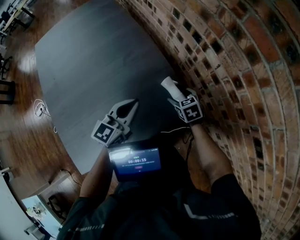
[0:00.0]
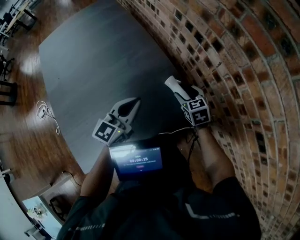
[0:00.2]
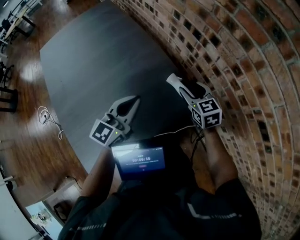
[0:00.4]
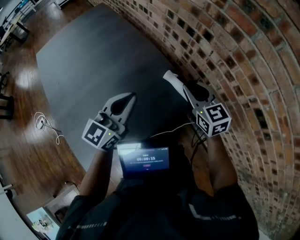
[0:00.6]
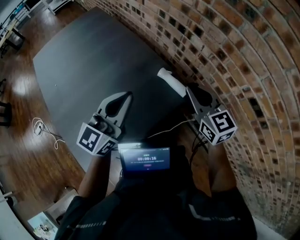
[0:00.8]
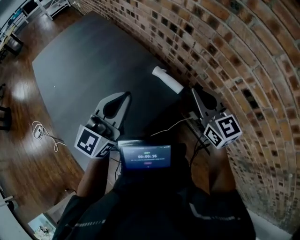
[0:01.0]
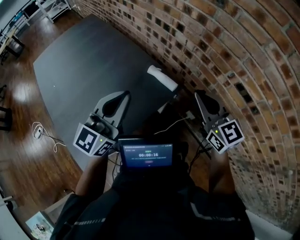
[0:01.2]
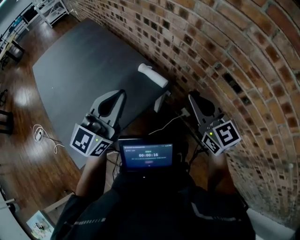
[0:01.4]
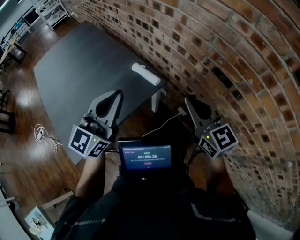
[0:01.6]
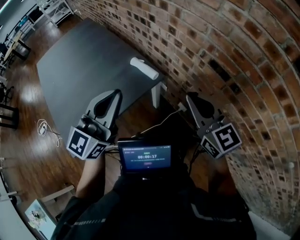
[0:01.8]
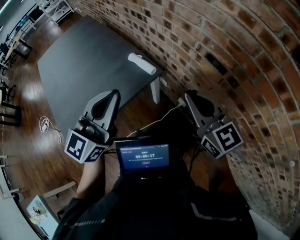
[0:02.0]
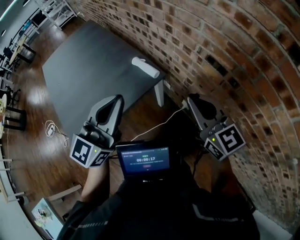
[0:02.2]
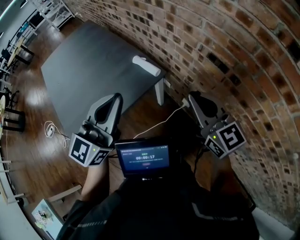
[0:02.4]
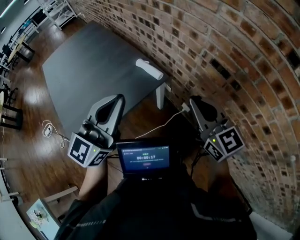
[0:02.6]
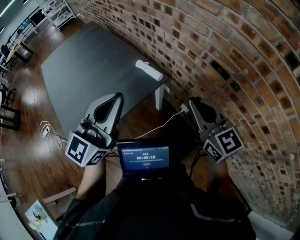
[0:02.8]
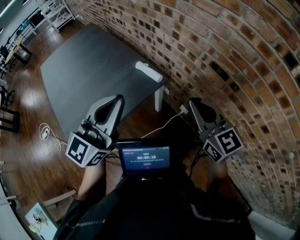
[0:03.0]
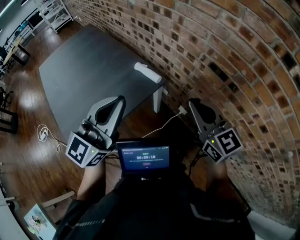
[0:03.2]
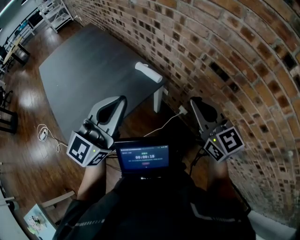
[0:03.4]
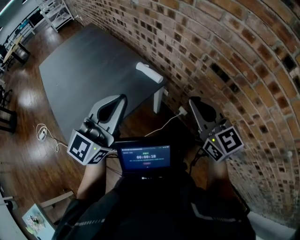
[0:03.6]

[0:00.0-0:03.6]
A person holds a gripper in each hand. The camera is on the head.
0:00.0 to 0:01.8: The left gripper goes about 35 cm backward, upward and to the right, and rotates about 20 degrees. The right gripper goes about 50 cm upward, backward and to the right, tips its fingers upward by roughly 50 degrees, and closes up.
0:01.8 to 0:03.6: The right gripper shifts by roughly 5 cm, while the left gripper is displaced backward by about 5 cm.

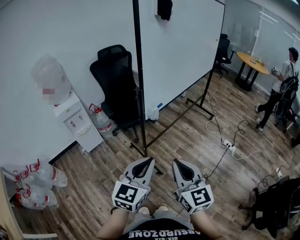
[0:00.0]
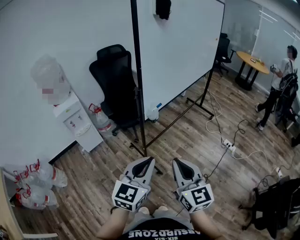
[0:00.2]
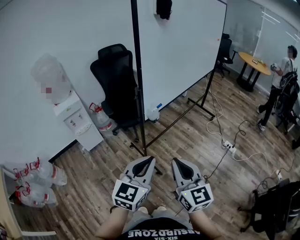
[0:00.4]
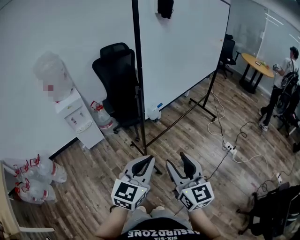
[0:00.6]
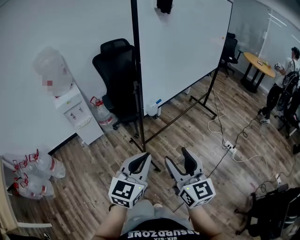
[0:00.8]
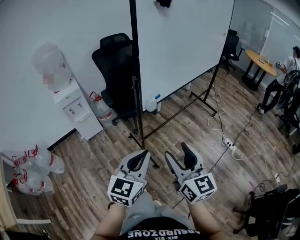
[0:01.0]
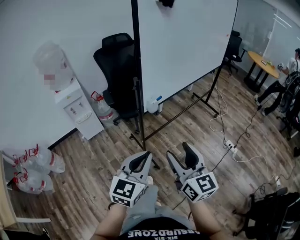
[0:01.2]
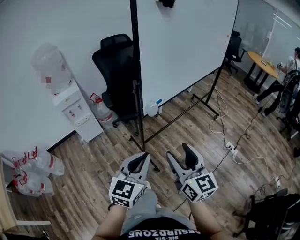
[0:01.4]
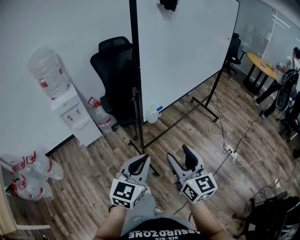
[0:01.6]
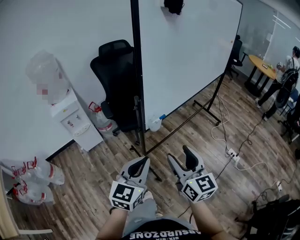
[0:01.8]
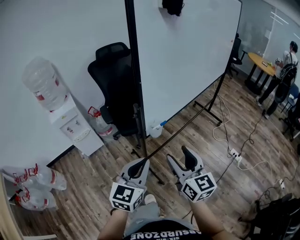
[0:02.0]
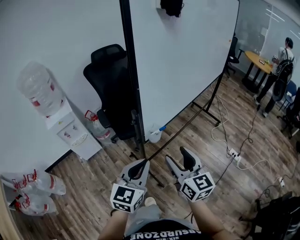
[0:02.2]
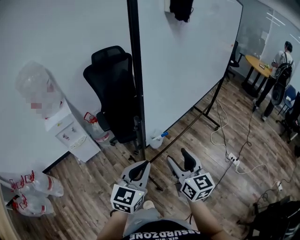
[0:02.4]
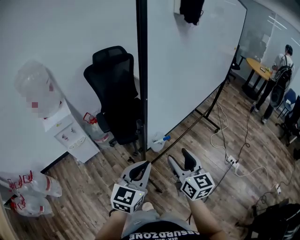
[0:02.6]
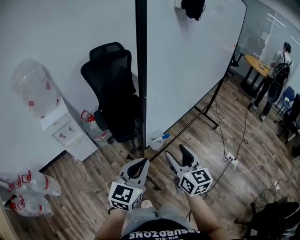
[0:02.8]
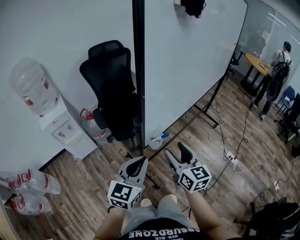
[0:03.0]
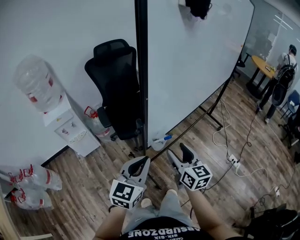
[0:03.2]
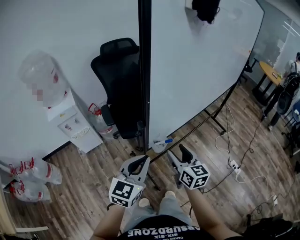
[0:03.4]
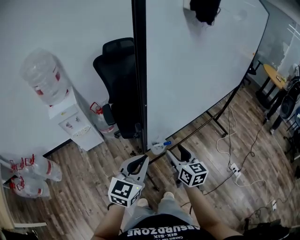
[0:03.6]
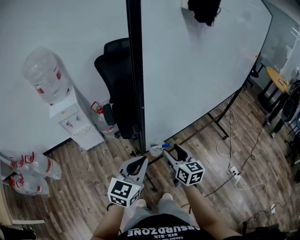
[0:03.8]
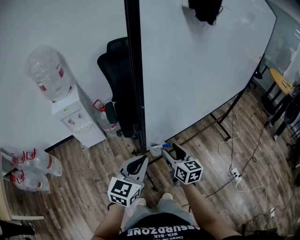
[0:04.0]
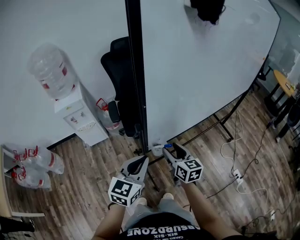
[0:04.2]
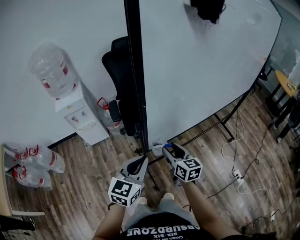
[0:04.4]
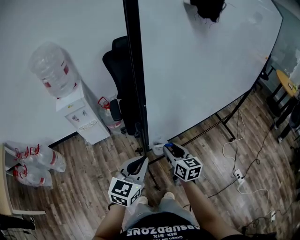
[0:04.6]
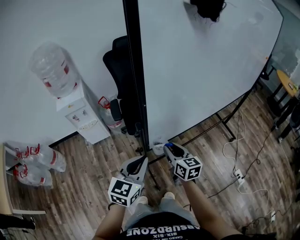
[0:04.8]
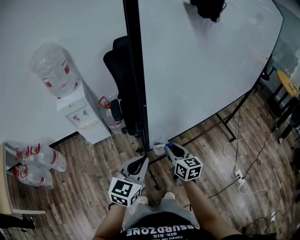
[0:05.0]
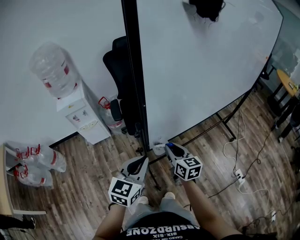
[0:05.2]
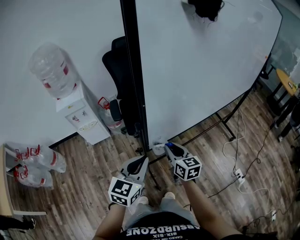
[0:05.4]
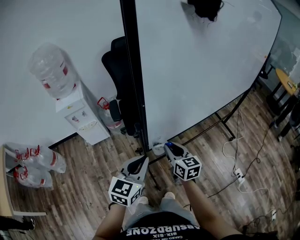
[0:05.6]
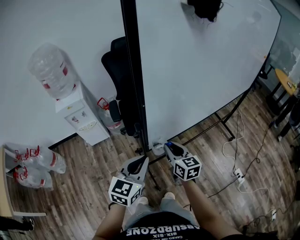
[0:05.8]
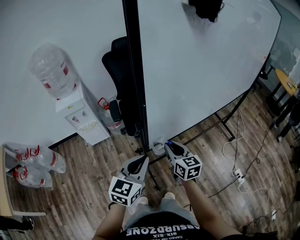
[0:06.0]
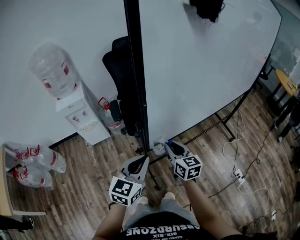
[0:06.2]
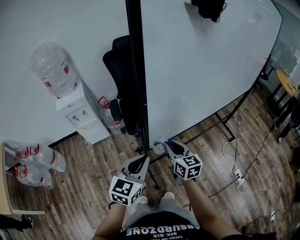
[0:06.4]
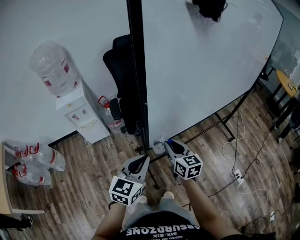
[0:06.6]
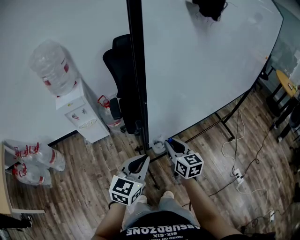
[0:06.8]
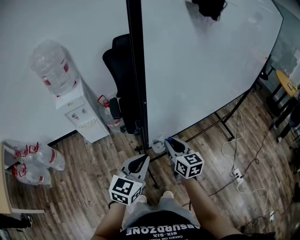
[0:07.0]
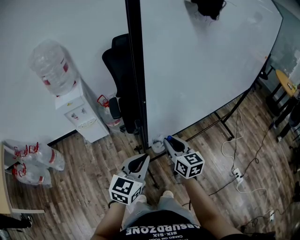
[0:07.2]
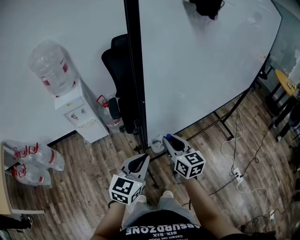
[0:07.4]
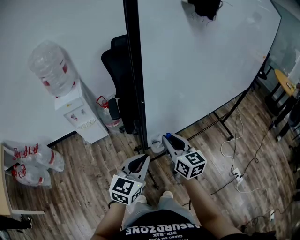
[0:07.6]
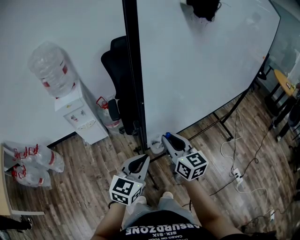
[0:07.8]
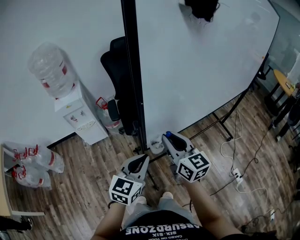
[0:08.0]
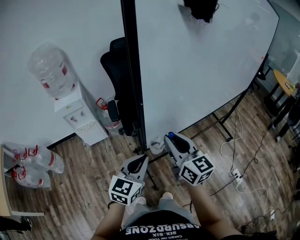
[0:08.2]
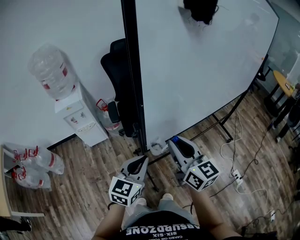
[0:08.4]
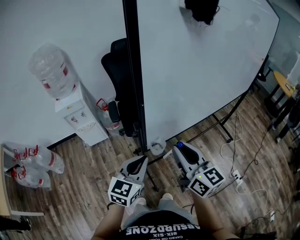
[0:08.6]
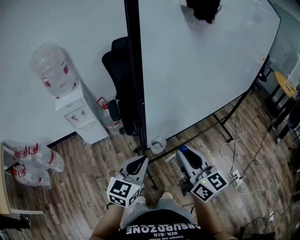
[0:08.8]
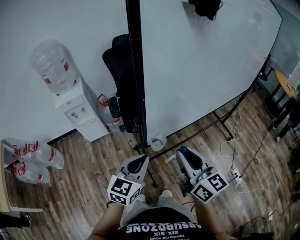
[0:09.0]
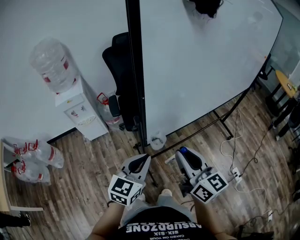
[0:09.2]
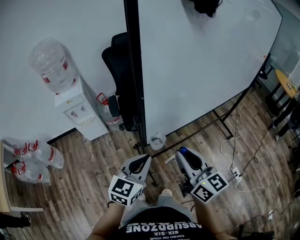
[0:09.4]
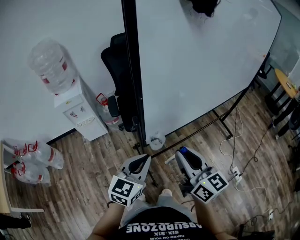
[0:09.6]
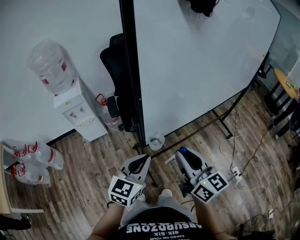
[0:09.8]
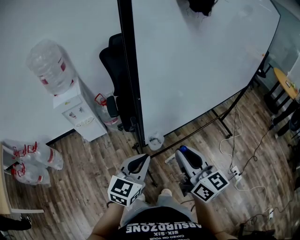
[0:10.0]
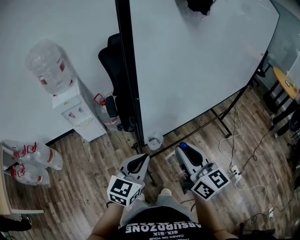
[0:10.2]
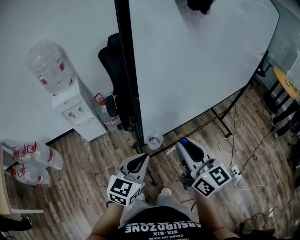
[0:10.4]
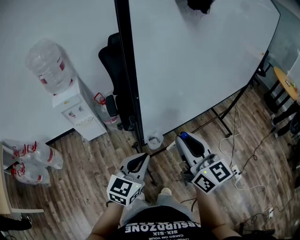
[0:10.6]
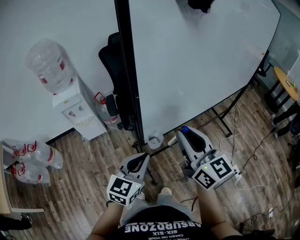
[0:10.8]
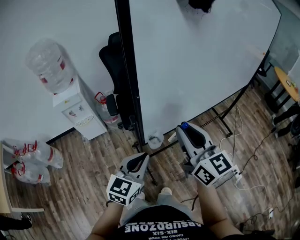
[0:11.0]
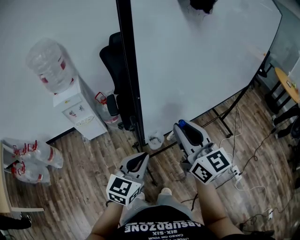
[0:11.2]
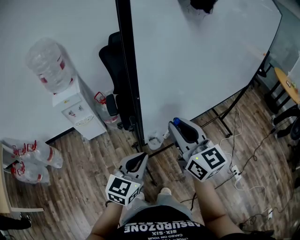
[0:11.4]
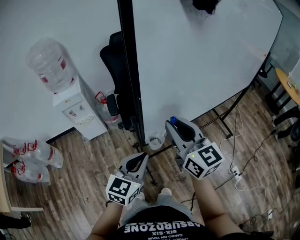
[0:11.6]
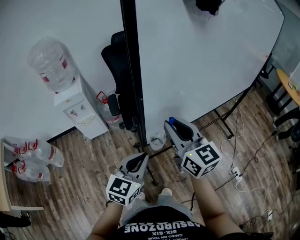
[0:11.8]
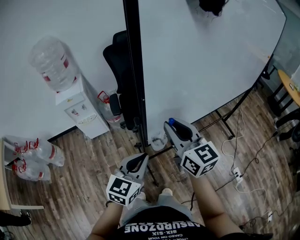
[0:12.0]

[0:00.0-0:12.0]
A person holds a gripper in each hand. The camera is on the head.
0:00.0 to 0:01.6: Both grippers travel together forward, some 10 cm. The right gripper opens up.
0:01.6 to 0:03.0: Both grippers travel together forward, roughly 20 cm.
0:03.0 to 0:04.4: The right gripper goes roughly 10 cm forward and downward, and rotates roughly 20 degrees.
0:04.4 to 0:06.0: The right gripper closes its fingers.
0:06.0 to 0:07.6: The right gripper heads upward, covering some 5 cm.
0:07.6 to 0:09.0: The right gripper shifts about 10 cm backward and upward.
0:09.0 to 0:10.4: The grippers move only a little.
0:10.4 to 0:12.0: The right gripper moves forward and to the left, some 10 cm.

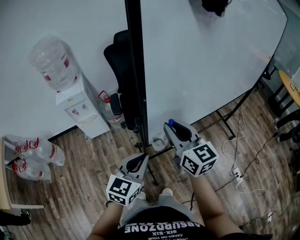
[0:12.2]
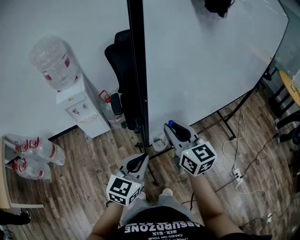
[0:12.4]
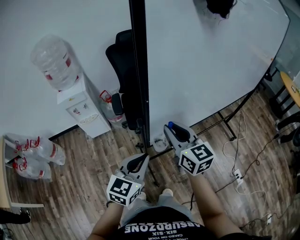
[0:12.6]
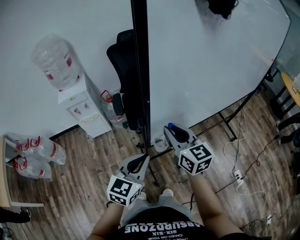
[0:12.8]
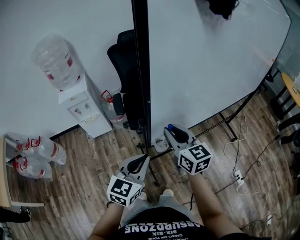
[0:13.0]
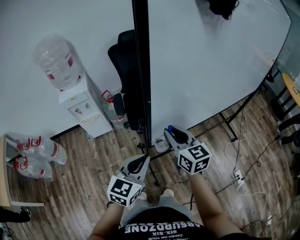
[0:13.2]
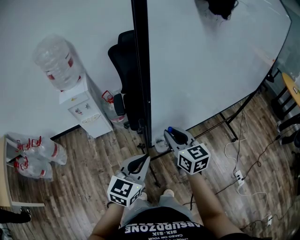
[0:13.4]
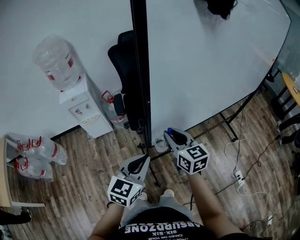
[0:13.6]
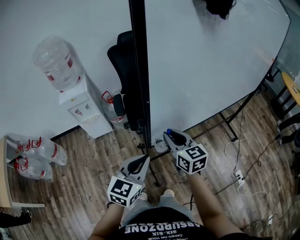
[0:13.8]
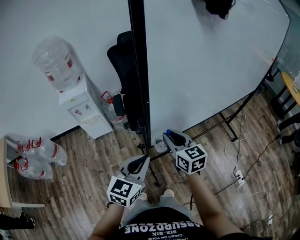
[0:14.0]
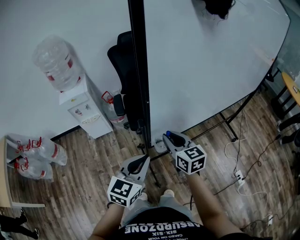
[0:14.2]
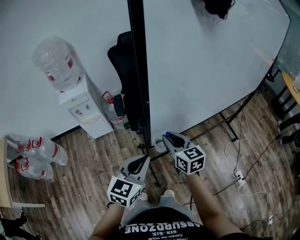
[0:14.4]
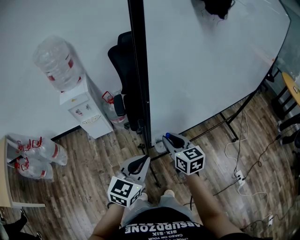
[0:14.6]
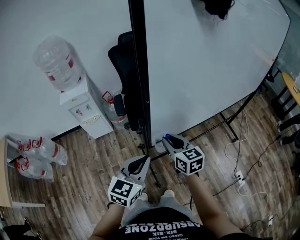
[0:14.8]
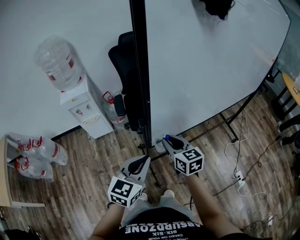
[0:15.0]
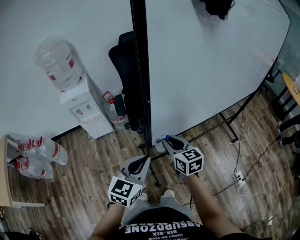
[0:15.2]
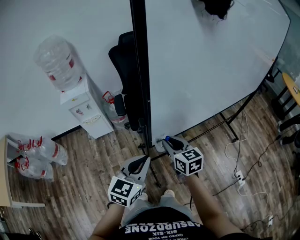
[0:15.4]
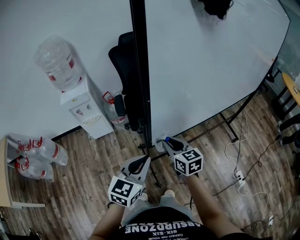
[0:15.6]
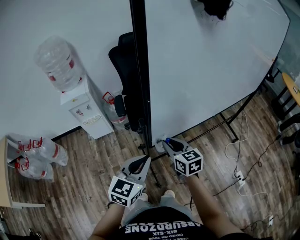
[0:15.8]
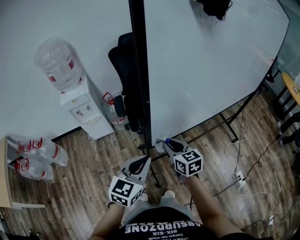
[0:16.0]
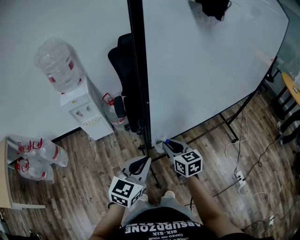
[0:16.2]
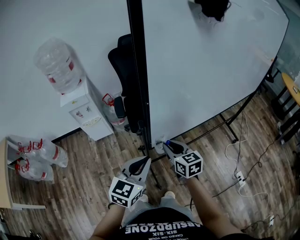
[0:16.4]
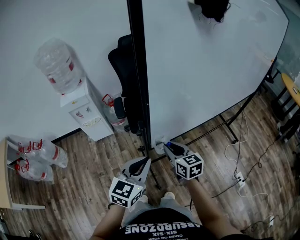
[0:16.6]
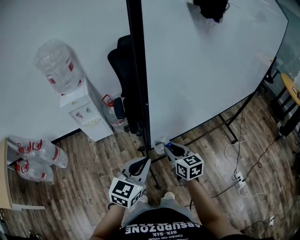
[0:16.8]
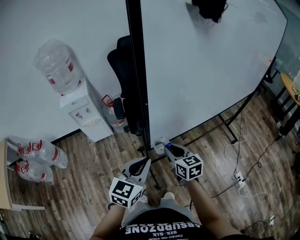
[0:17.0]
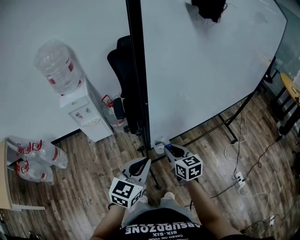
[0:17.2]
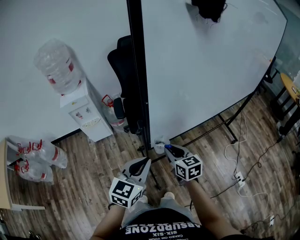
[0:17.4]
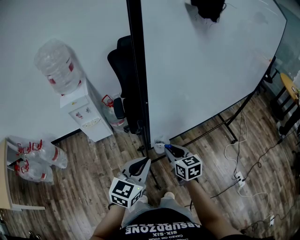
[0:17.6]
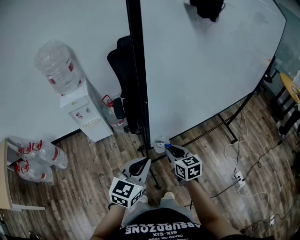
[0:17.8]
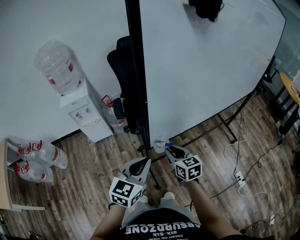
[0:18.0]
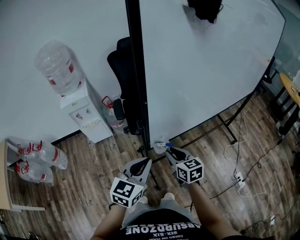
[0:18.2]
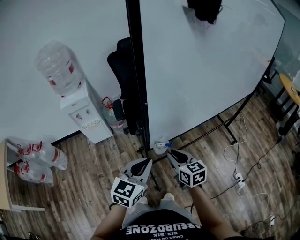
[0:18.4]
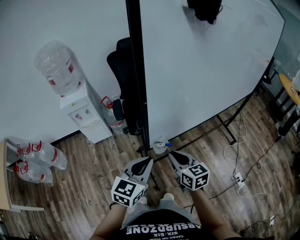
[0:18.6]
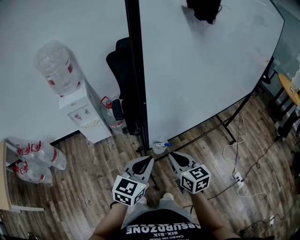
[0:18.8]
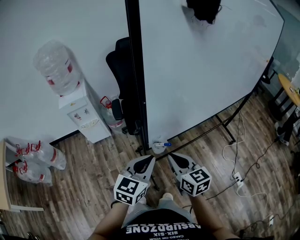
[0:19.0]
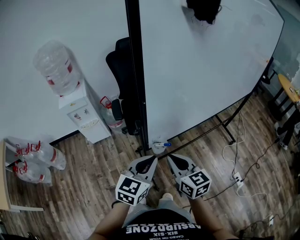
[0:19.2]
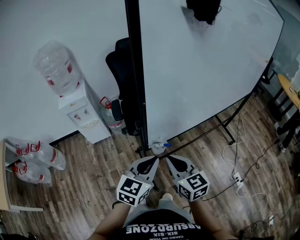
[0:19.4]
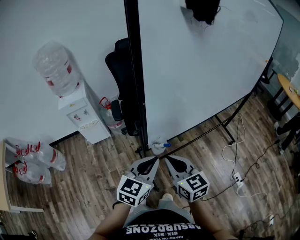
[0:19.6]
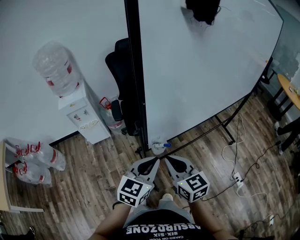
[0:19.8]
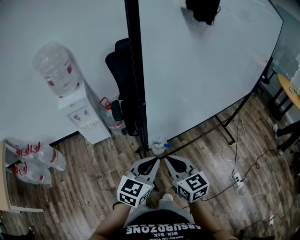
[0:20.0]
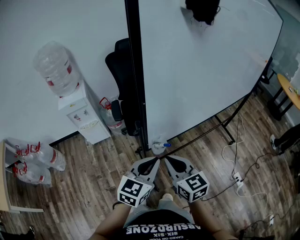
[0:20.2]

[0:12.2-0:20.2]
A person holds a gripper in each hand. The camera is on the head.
0:12.2 to 0:13.8: The right gripper moves downward, some 10 cm.
0:13.8 to 0:15.4: The right gripper moves roughly 5 cm.
0:15.4 to 0:17.0: There are only small adjustments of the grippers.
0:17.0 to 0:18.6: The right gripper ends up approximately 5 cm from where it was.
0:18.6 to 0:20.2: The right gripper goes about 5 cm upward.
